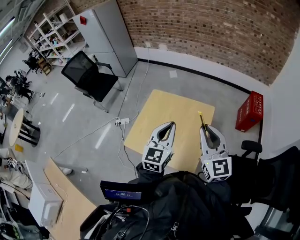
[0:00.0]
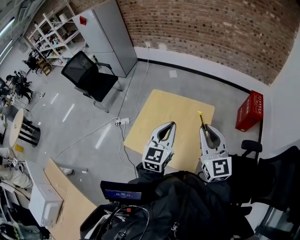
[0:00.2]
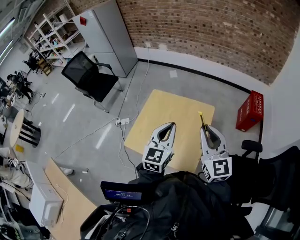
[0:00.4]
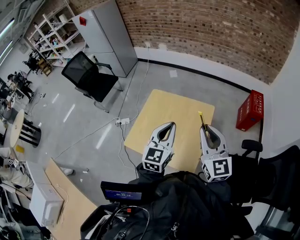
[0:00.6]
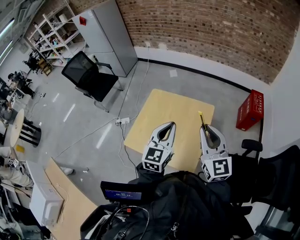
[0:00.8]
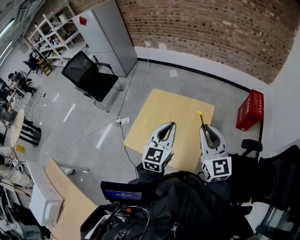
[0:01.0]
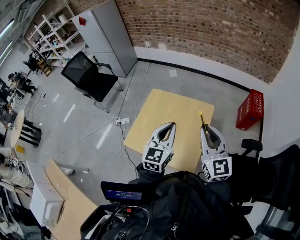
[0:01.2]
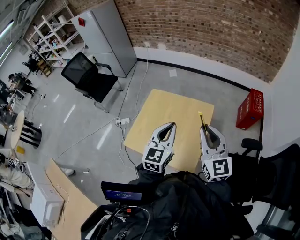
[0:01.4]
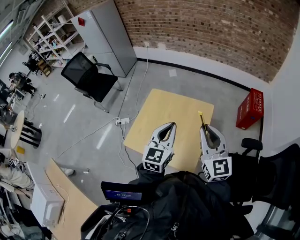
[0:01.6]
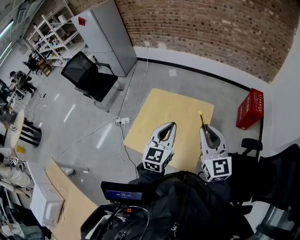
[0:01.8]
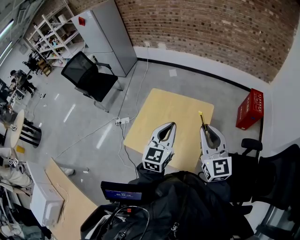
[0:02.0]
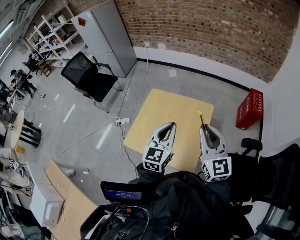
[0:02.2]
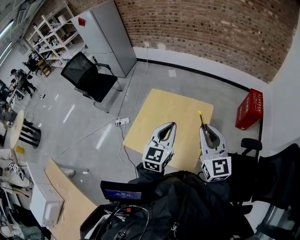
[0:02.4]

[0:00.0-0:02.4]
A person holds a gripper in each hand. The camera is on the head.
0.0 to 1.2 s: Neither gripper changes place.
1.2 to 2.4 s: Both grippers stay put.

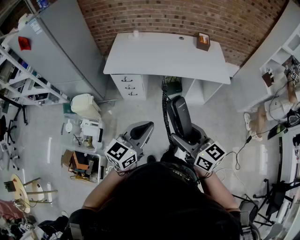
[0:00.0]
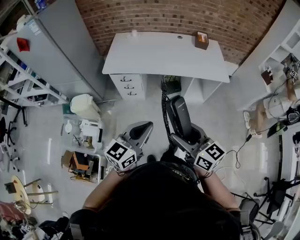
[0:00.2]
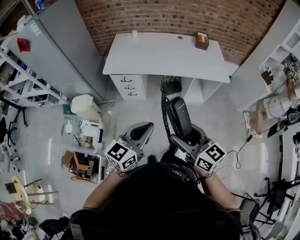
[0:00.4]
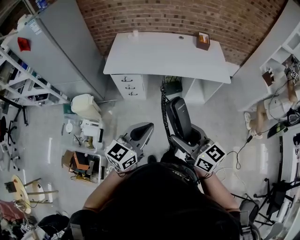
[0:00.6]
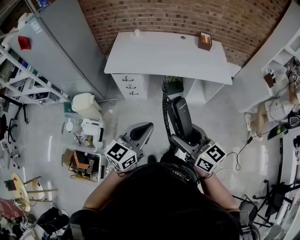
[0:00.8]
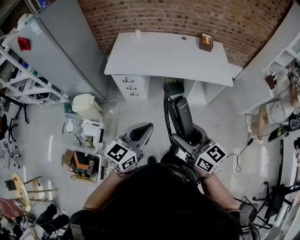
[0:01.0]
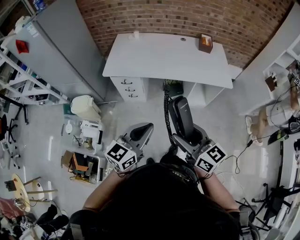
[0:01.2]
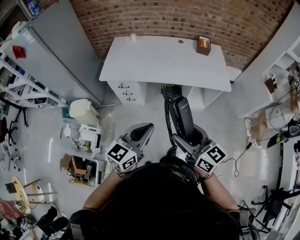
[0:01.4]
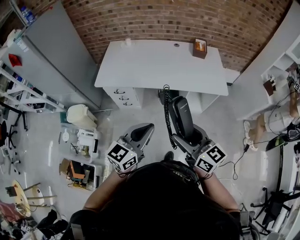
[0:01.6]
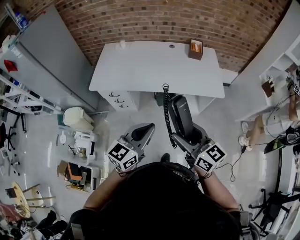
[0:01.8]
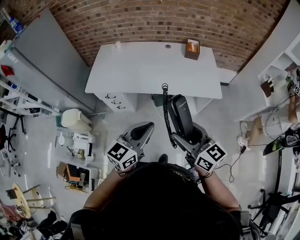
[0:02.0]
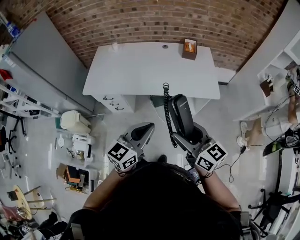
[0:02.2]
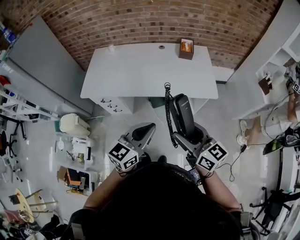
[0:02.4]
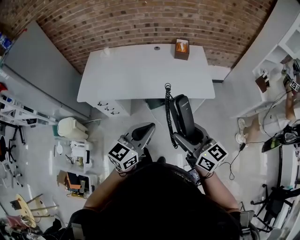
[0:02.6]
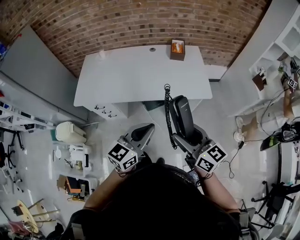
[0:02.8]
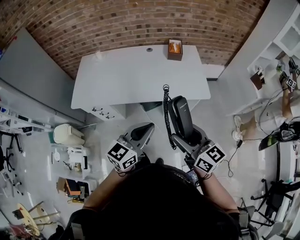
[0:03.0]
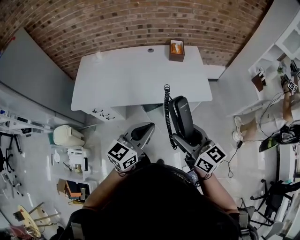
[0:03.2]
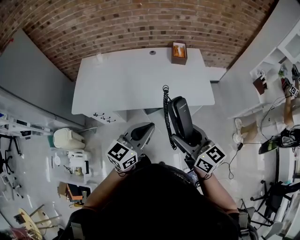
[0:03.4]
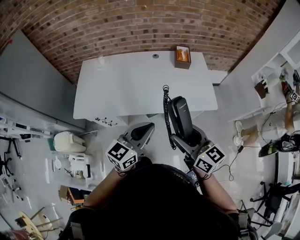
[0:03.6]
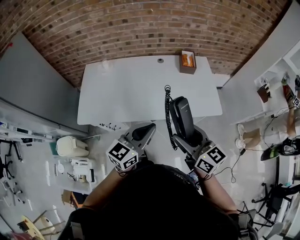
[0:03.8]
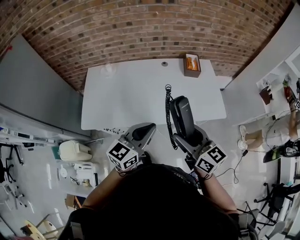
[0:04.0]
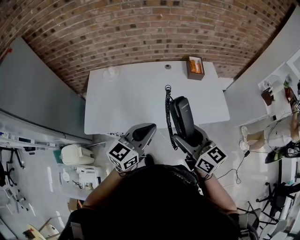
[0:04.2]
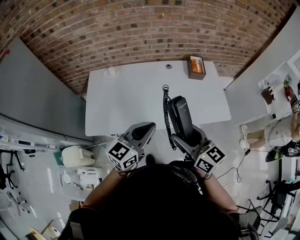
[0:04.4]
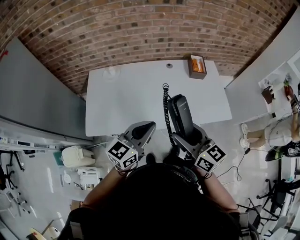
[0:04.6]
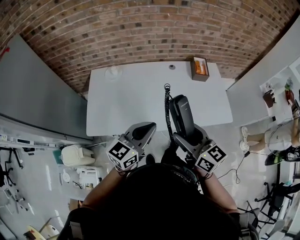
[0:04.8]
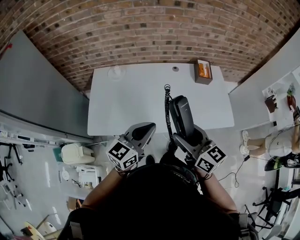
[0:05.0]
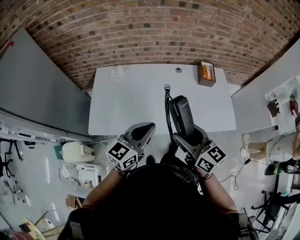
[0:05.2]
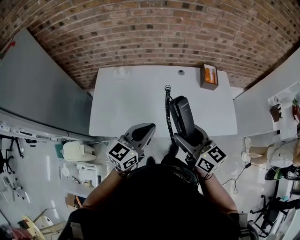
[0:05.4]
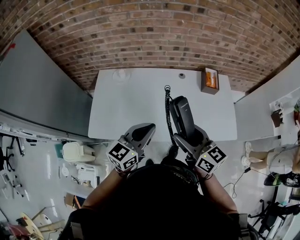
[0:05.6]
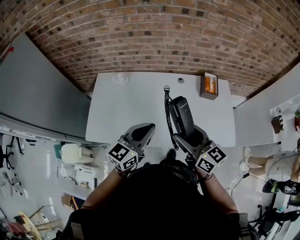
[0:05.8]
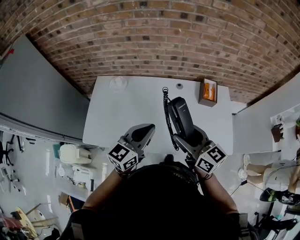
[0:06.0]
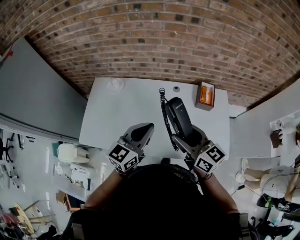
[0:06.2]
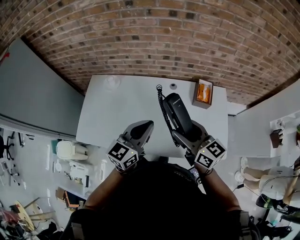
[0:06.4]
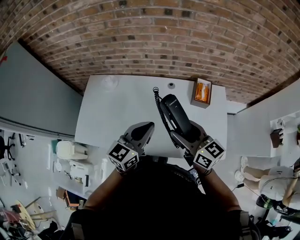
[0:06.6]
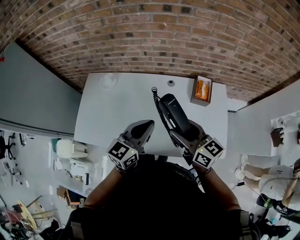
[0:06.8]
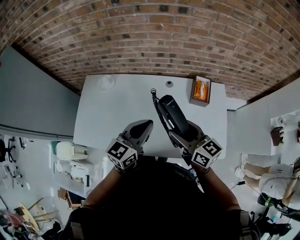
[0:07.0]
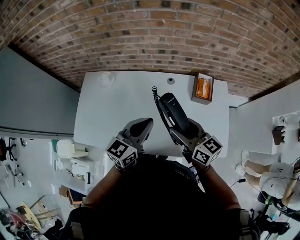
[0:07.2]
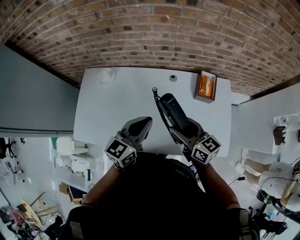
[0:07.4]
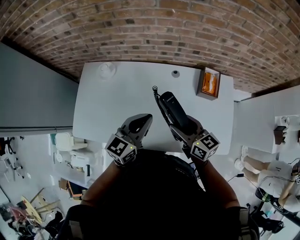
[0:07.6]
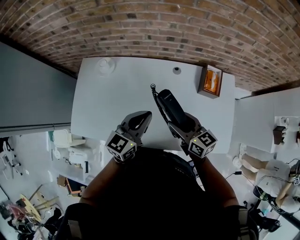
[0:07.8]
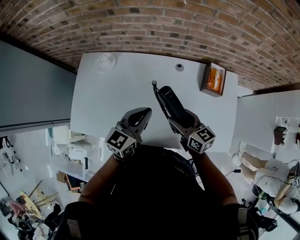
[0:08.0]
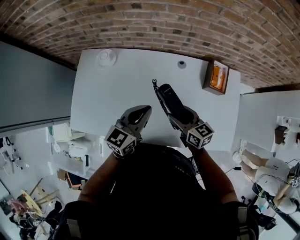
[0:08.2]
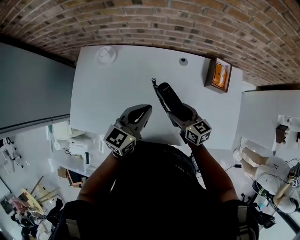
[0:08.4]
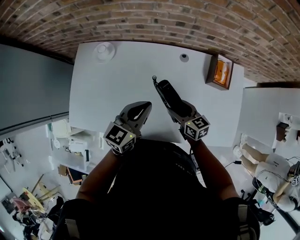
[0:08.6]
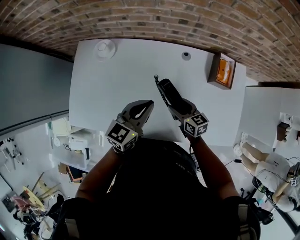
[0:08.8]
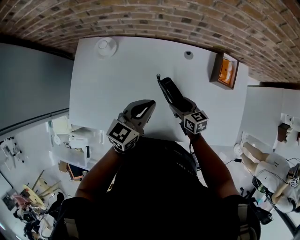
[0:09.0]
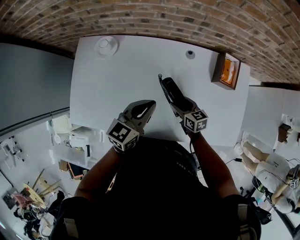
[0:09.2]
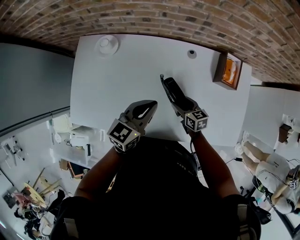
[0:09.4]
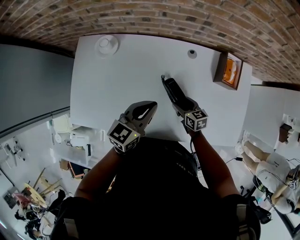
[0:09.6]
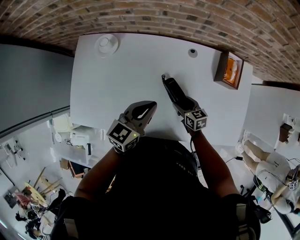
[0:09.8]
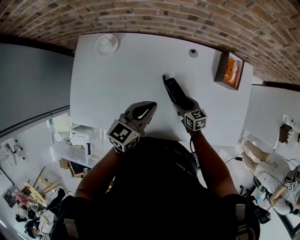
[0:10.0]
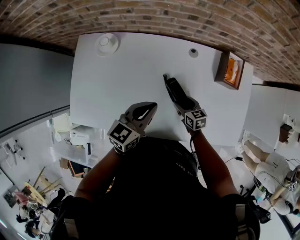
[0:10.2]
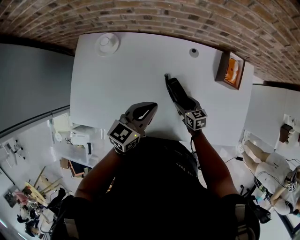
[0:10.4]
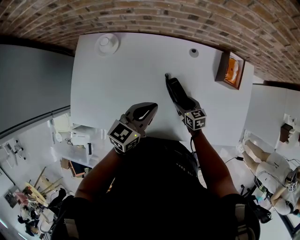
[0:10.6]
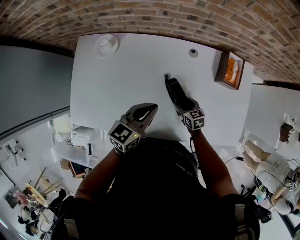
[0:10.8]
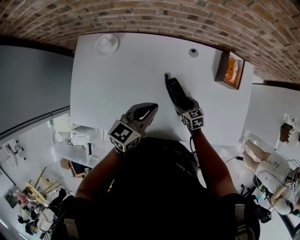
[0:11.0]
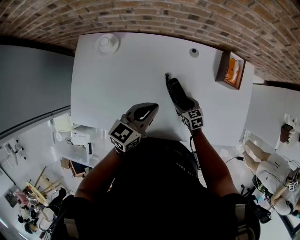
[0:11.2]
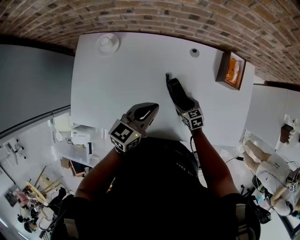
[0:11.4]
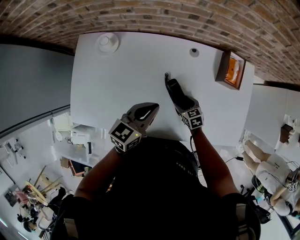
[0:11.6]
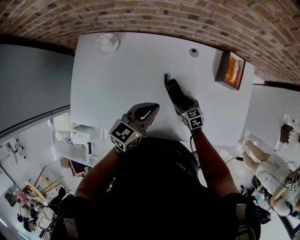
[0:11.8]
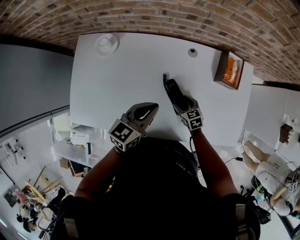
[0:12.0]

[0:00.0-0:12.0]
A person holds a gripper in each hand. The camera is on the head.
0.0 to 1.6 s: The two grippers go approximately 15 cm forward and to the right.
1.6 to 3.0 s: The two grippers go roughly 20 cm to the right and forward.
3.0 to 4.4 s: The grippers both shift to the left and forward by some 30 cm.
4.4 to 6.0 s: The grippers both shift forward by about 15 cm.
6.0 to 7.6 s: The right gripper travels downward, forward and to the right by approximately 15 cm; the left gripper is displaced forward, to the right and downward by some 15 cm.
7.6 to 9.0 s: The left gripper moves downward, some 10 cm; the right gripper moves downward, approximately 20 cm.
9.0 to 10.4 s: The right gripper travels downward by approximately 10 cm.
10.4 to 12.0 s: The grippers move only a little.

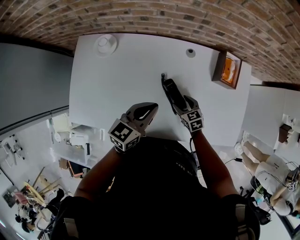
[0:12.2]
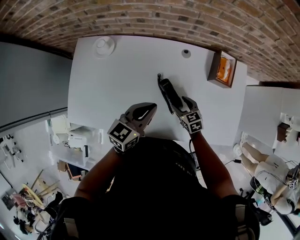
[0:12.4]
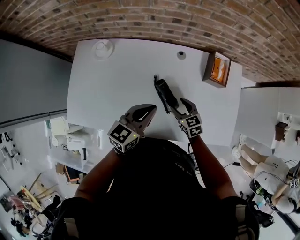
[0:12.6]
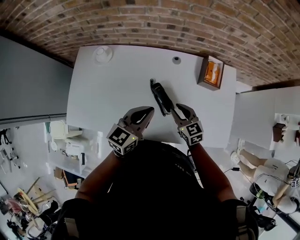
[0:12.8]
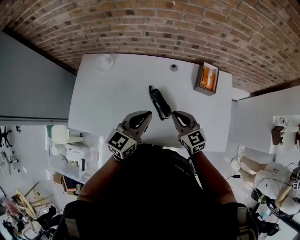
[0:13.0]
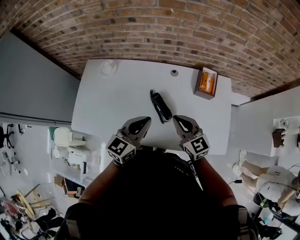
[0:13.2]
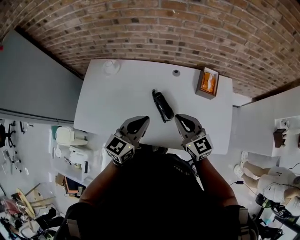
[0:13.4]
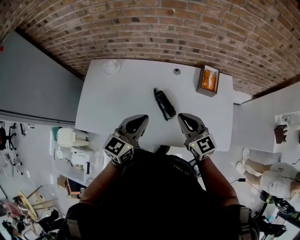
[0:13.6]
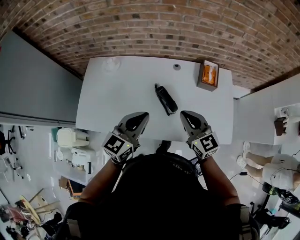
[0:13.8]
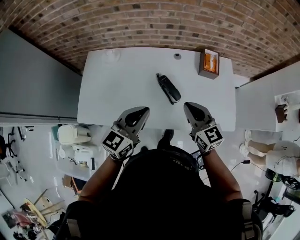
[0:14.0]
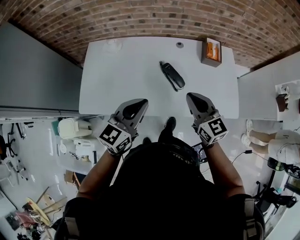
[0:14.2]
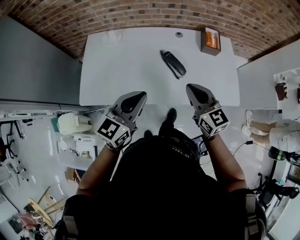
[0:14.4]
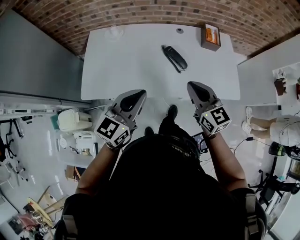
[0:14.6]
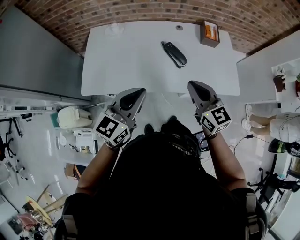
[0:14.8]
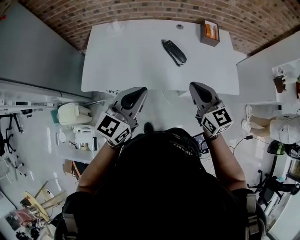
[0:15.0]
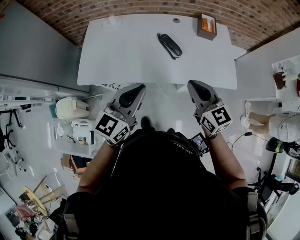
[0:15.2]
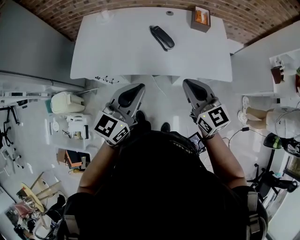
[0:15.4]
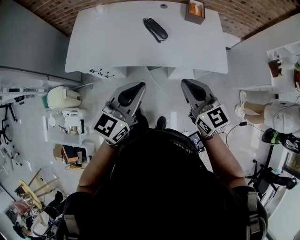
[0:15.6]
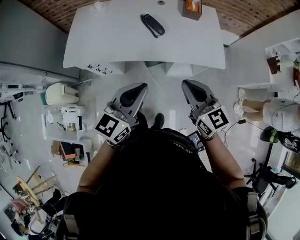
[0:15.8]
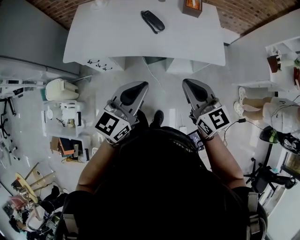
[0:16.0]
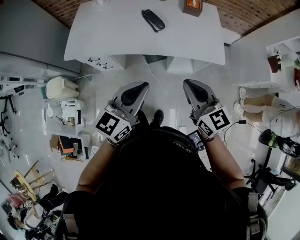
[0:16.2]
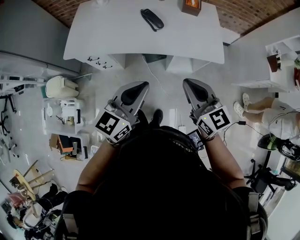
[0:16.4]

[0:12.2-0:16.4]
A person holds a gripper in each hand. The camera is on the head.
12.2 to 13.6 s: The left gripper shifts some 15 cm upward and backward; the right gripper heads upward, covering some 30 cm, tips its fingers upward by roughly 30 degrees, and closes its fingers.
13.6 to 15.0 s: The right gripper goes roughly 20 cm backward; the left gripper travels backward and to the left by approximately 25 cm.
15.0 to 16.4 s: The left gripper travels to the right and backward by approximately 25 cm; the right gripper travels backward and to the right by about 25 cm.

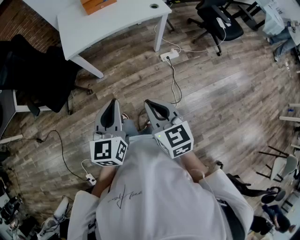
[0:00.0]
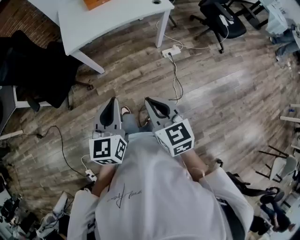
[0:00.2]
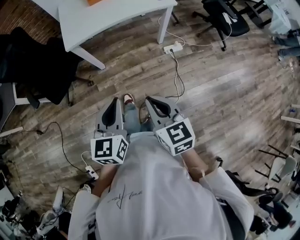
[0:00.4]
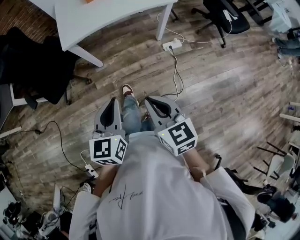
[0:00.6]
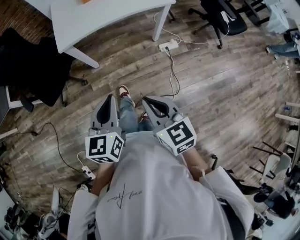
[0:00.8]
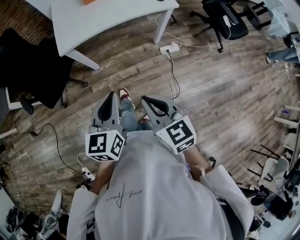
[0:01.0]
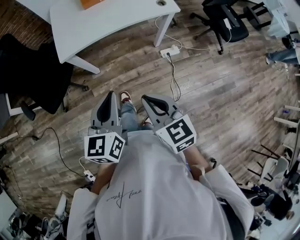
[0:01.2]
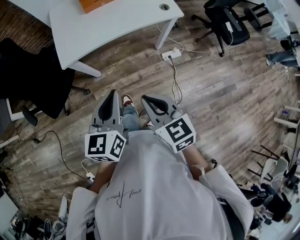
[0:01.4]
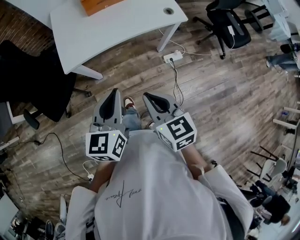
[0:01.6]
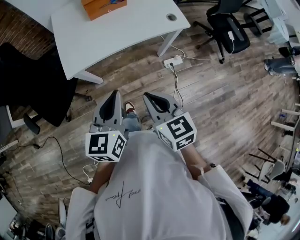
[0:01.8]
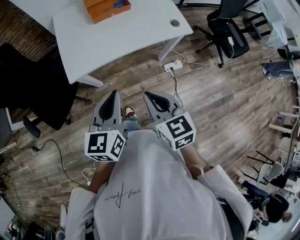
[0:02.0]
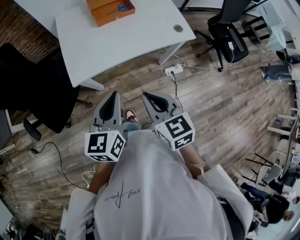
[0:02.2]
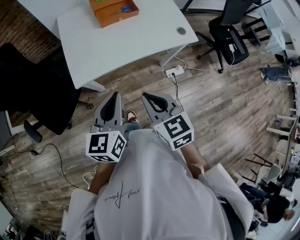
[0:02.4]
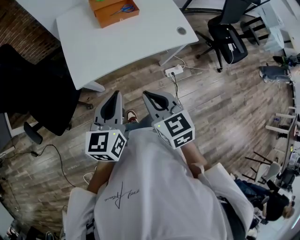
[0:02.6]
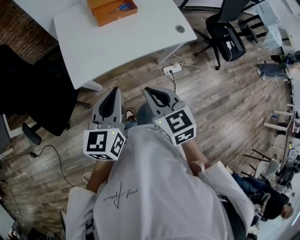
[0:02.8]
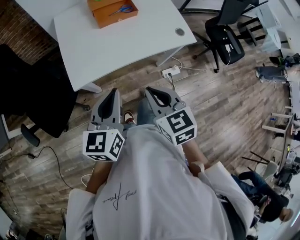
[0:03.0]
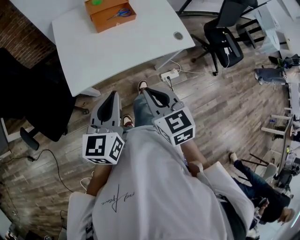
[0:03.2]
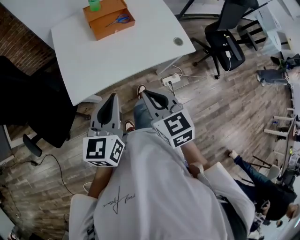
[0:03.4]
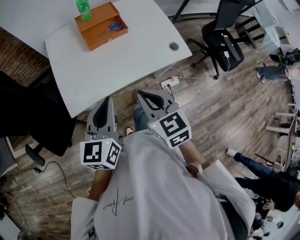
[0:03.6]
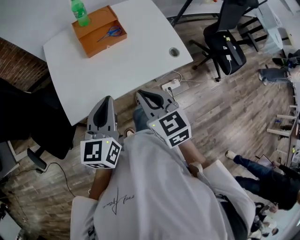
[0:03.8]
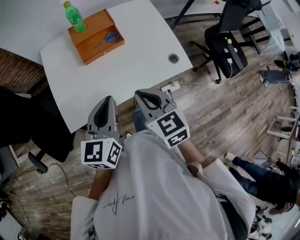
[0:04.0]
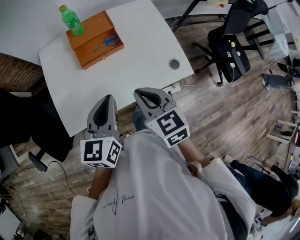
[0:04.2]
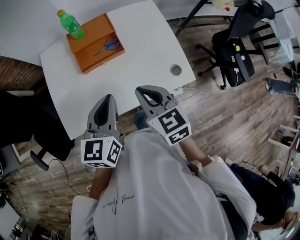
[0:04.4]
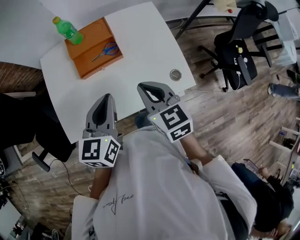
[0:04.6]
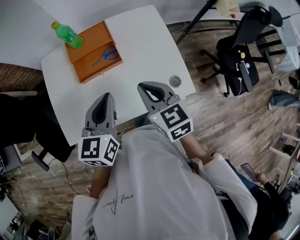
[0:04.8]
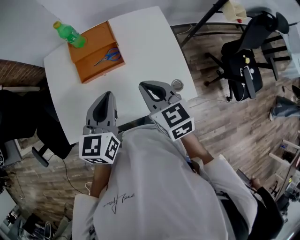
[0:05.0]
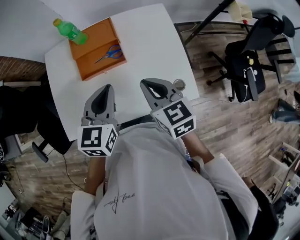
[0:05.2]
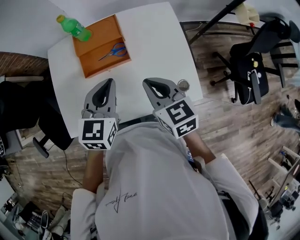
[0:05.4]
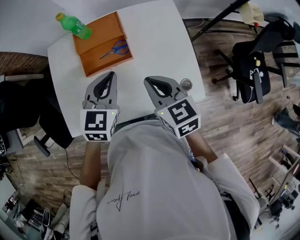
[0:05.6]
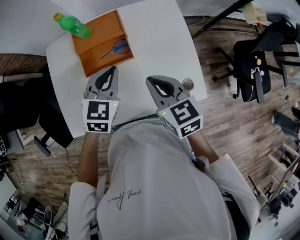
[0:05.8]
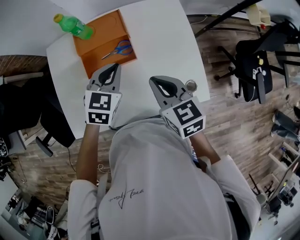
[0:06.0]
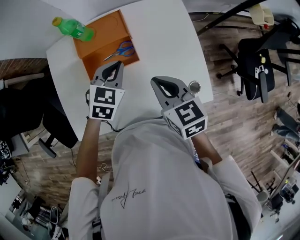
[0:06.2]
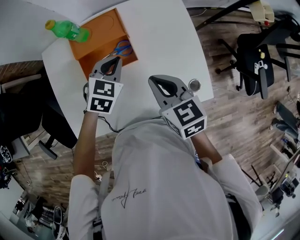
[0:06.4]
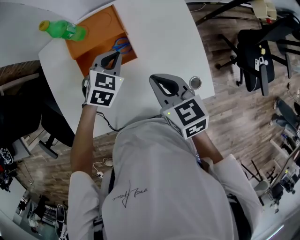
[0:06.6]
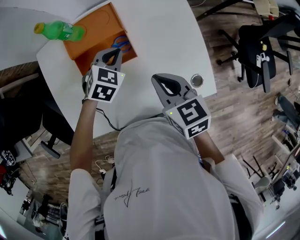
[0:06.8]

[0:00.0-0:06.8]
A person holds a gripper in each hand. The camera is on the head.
0.0 to 1.4 s: Both grippers move forward, some 15 cm.
1.4 to 2.8 s: Both grippers travel together forward and to the left, roughly 20 cm.
2.8 to 4.0 s: The left gripper shifts some 20 cm forward and to the right, while the right gripper heads forward, covering approximately 20 cm.
4.0 to 5.4 s: The two grippers go roughly 20 cm forward and to the right. The left gripper turns by some 20 degrees.
5.4 to 6.8 s: The left gripper heads downward and forward, covering roughly 20 cm, and changes its angle by roughly 30 degrees. Meanwhile the right gripper shifts roughly 5 cm downward and forward.
